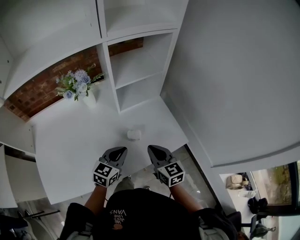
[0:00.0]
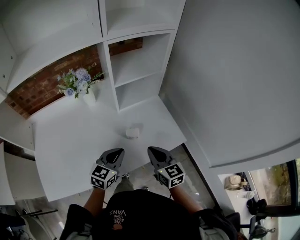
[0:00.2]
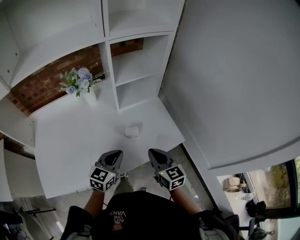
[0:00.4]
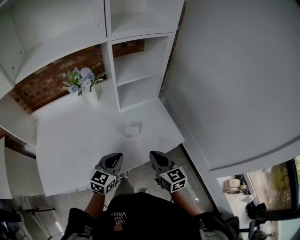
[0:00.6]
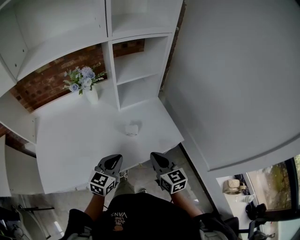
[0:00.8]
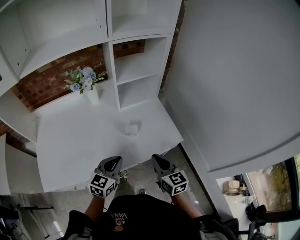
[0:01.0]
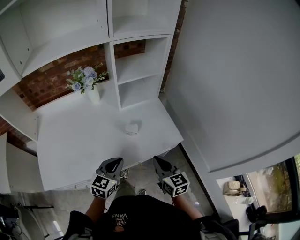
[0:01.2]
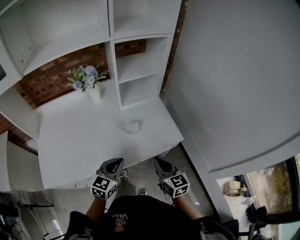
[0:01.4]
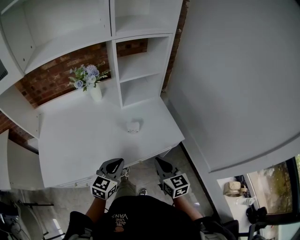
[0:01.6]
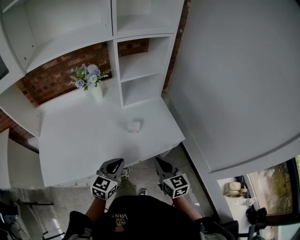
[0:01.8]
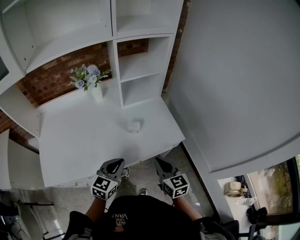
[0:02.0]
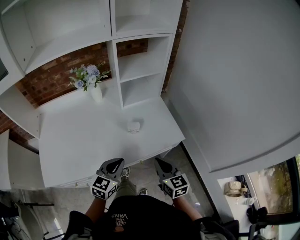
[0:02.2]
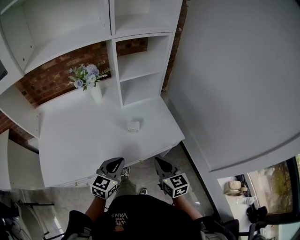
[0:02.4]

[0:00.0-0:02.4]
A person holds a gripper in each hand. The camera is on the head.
0:00.0 to 0:01.2: The left gripper travels backward by roughly 10 cm, while the right gripper goes roughly 10 cm backward and to the right.
0:01.2 to 0:02.4: The grippers make only small movements.

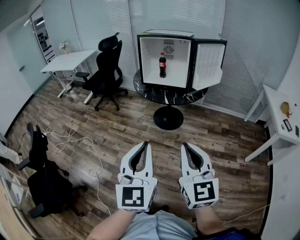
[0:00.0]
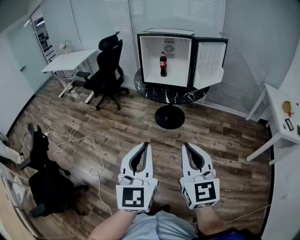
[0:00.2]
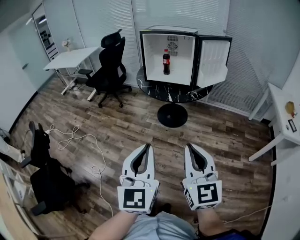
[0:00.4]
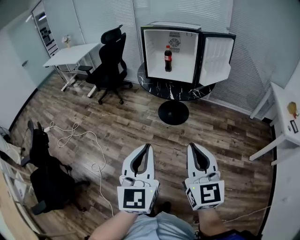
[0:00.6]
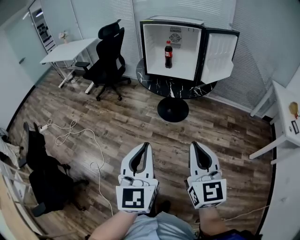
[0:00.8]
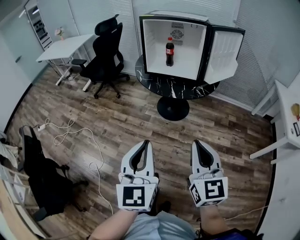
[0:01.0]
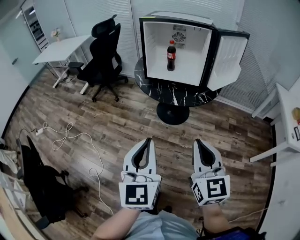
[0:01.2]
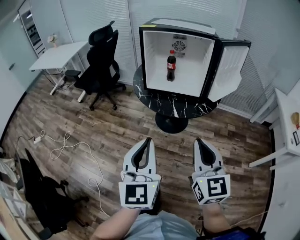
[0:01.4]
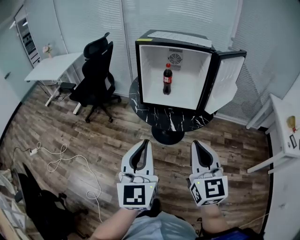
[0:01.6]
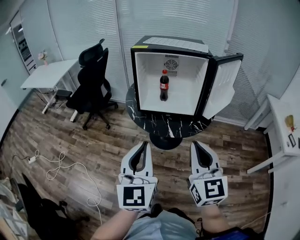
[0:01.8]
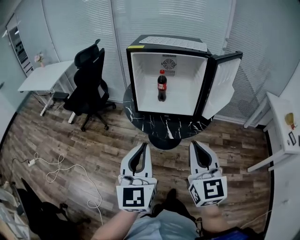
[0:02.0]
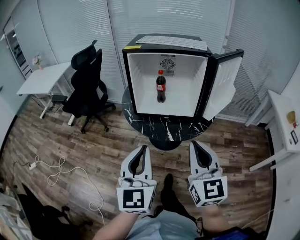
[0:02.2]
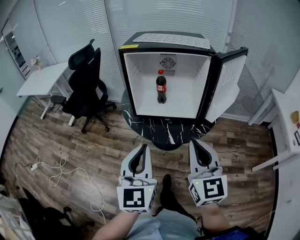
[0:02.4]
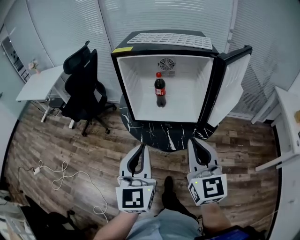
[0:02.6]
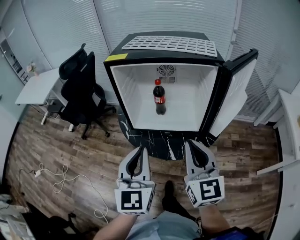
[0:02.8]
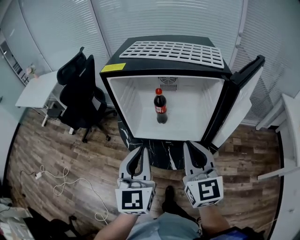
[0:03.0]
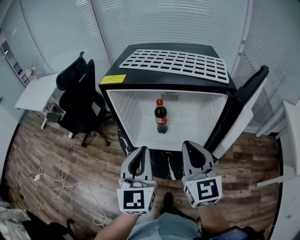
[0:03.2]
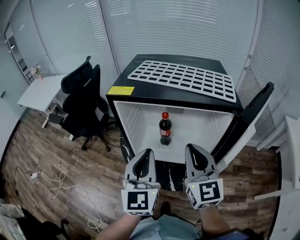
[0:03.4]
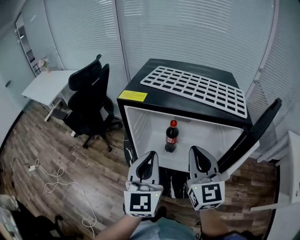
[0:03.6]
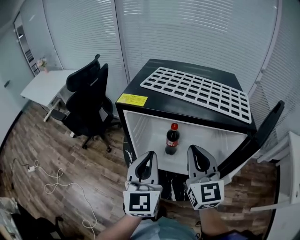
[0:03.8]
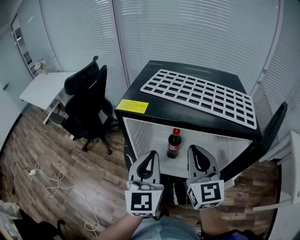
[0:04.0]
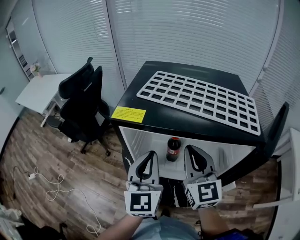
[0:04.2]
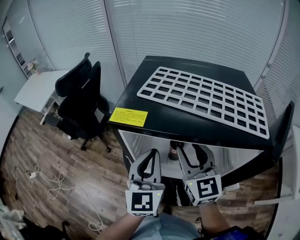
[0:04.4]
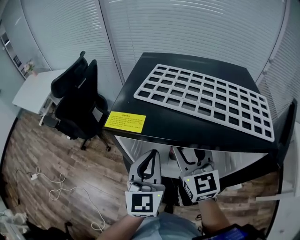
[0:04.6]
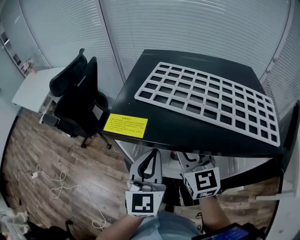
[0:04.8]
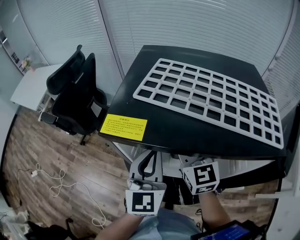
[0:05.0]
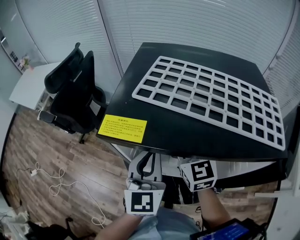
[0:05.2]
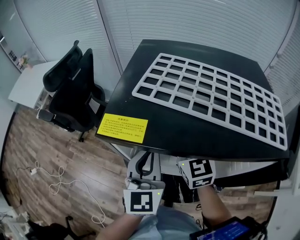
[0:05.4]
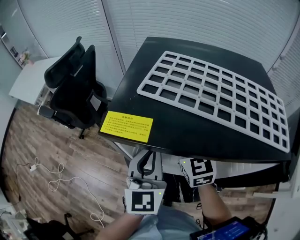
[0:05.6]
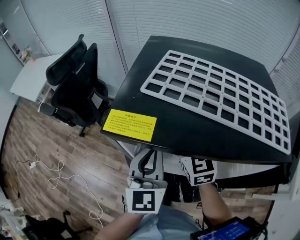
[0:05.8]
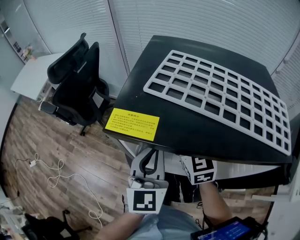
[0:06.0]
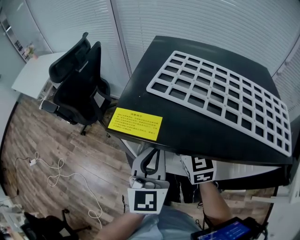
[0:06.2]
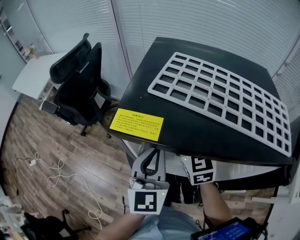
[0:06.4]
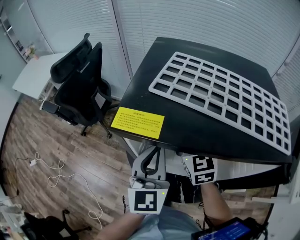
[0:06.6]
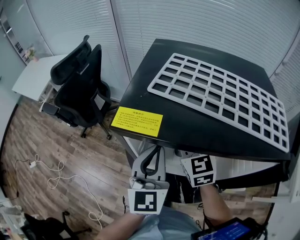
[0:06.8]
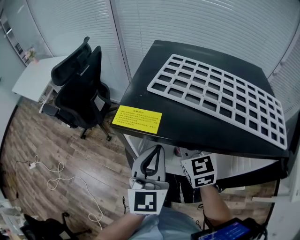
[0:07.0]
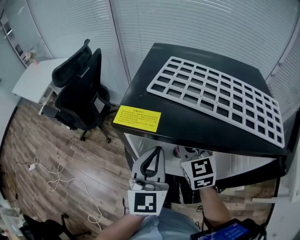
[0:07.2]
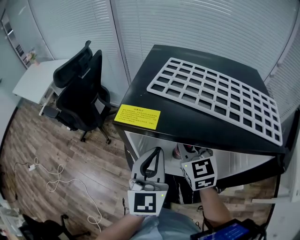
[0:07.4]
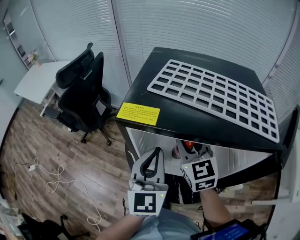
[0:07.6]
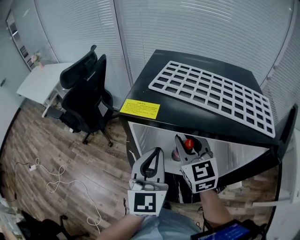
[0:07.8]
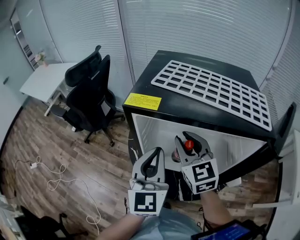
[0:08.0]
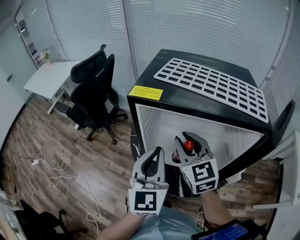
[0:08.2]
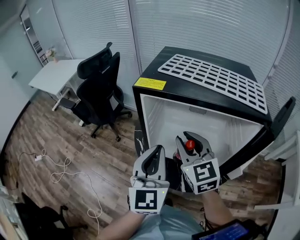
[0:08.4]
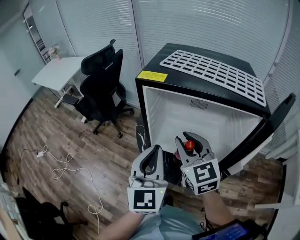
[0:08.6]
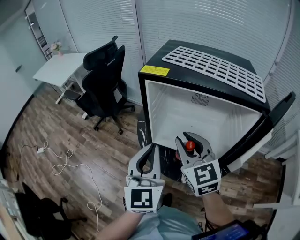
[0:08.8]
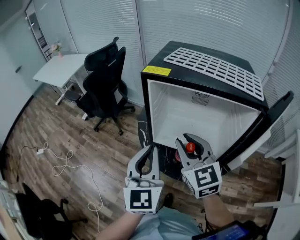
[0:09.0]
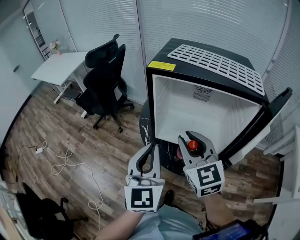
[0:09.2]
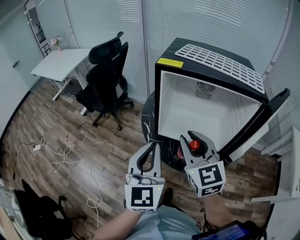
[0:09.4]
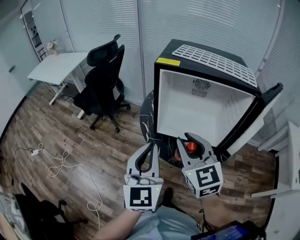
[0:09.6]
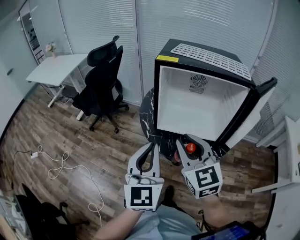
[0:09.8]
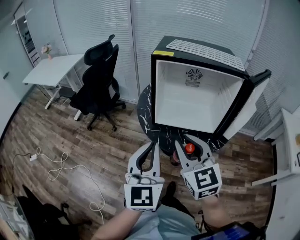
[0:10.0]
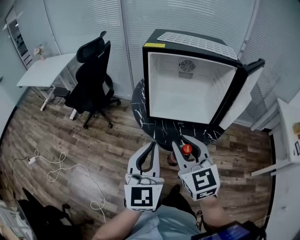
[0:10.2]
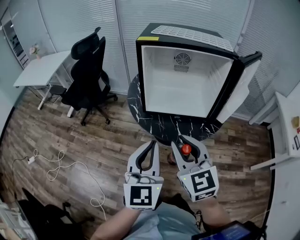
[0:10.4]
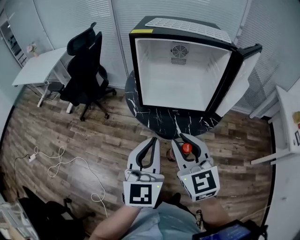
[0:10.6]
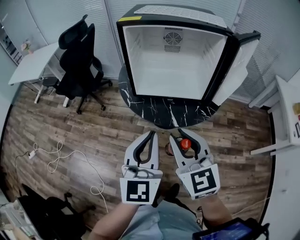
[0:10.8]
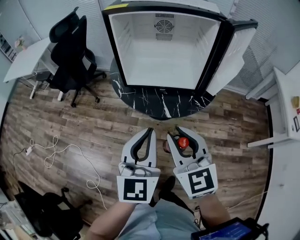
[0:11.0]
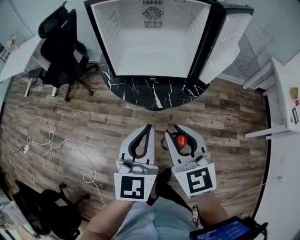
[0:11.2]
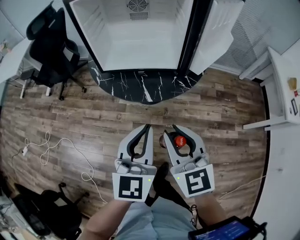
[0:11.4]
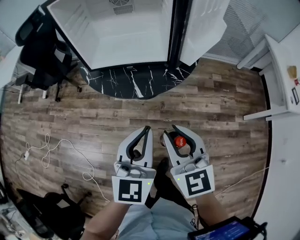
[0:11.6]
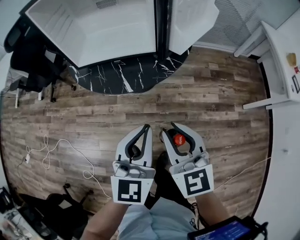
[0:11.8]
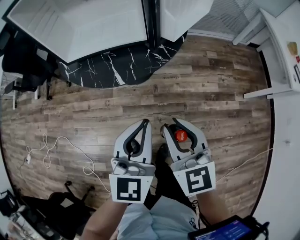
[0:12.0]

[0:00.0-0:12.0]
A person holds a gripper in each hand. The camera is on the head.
0:00.0 to 0:01.6: The two grippers go roughly 35 cm forward.
0:01.6 to 0:03.0: The two grippers go approximately 30 cm forward.
0:03.0 to 0:04.4: The two grippers go approximately 20 cm forward. The right gripper opens.
0:04.4 to 0:06.0: The right gripper is displaced downward and forward by some 10 cm.
0:06.0 to 0:07.6: The right gripper changes place by some 5 cm.
0:07.6 to 0:09.0: The left gripper shifts some 15 cm backward and to the left. The right gripper moves backward, some 20 cm.
0:09.0 to 0:10.4: Both grippers travel together backward, roughly 20 cm.
0:10.4 to 0:12.0: Both grippers move to the right and downward, some 30 cm. The left gripper swivels approximately 20 degrees.

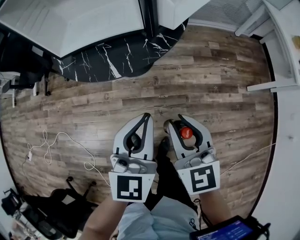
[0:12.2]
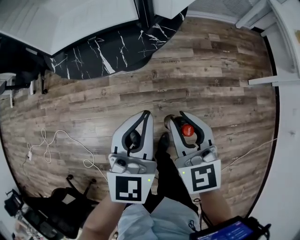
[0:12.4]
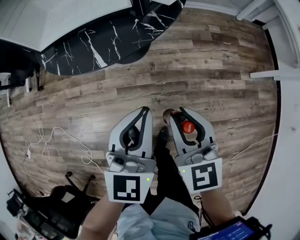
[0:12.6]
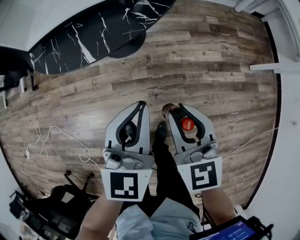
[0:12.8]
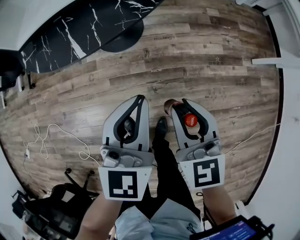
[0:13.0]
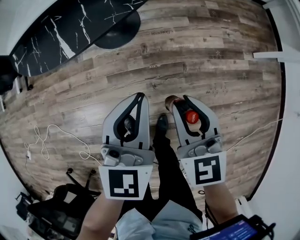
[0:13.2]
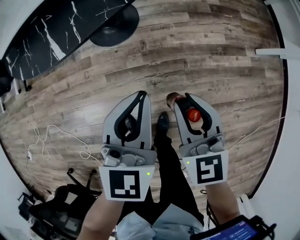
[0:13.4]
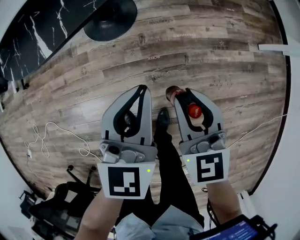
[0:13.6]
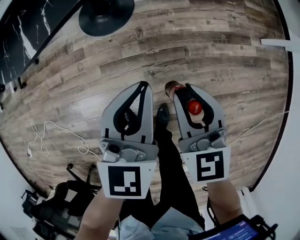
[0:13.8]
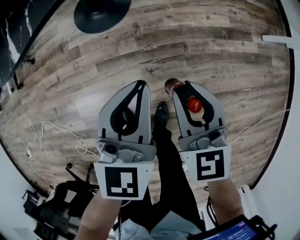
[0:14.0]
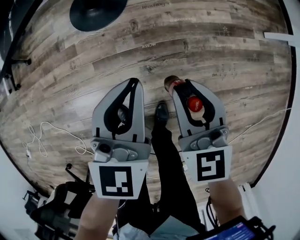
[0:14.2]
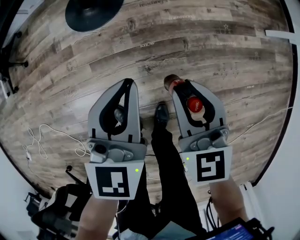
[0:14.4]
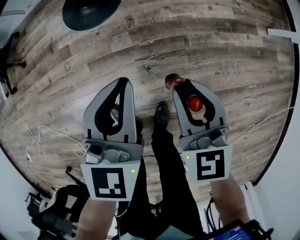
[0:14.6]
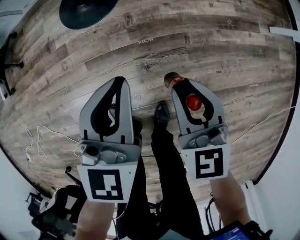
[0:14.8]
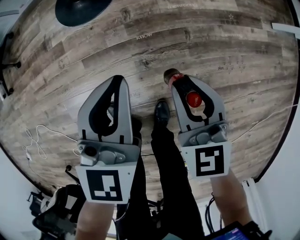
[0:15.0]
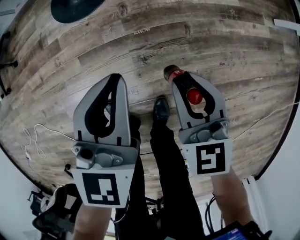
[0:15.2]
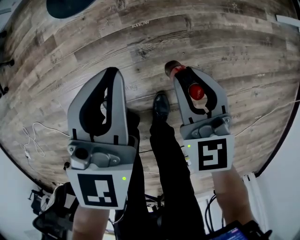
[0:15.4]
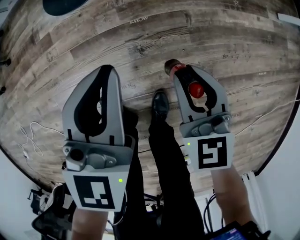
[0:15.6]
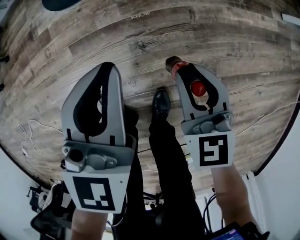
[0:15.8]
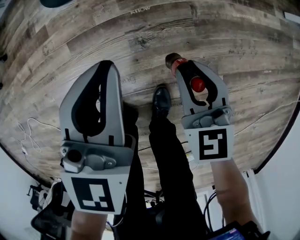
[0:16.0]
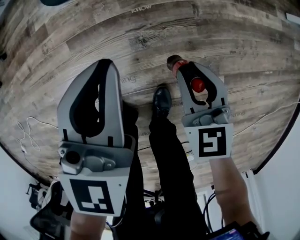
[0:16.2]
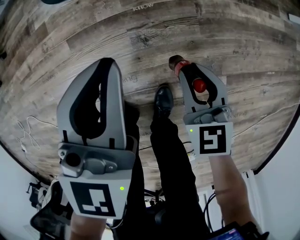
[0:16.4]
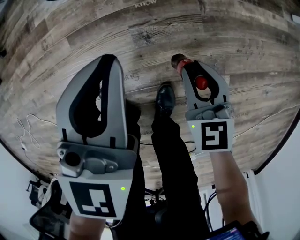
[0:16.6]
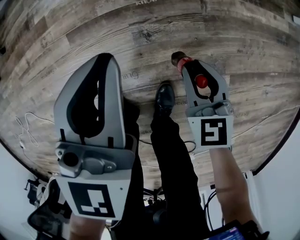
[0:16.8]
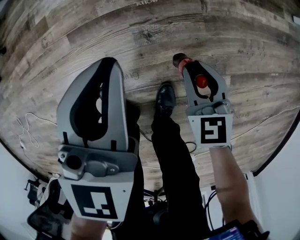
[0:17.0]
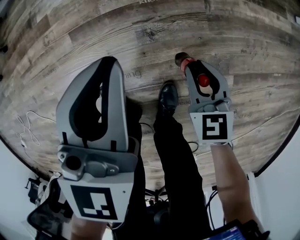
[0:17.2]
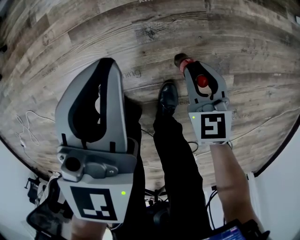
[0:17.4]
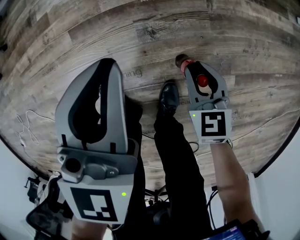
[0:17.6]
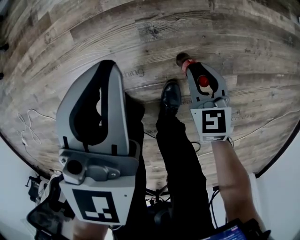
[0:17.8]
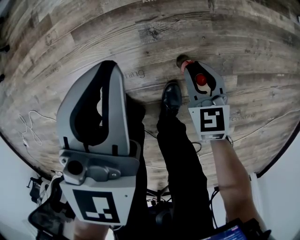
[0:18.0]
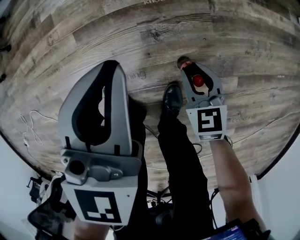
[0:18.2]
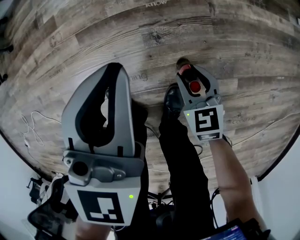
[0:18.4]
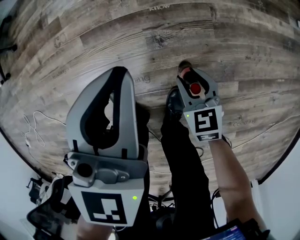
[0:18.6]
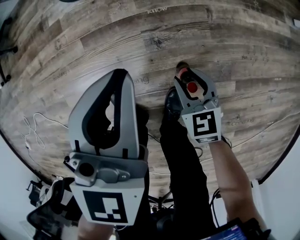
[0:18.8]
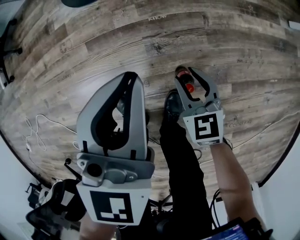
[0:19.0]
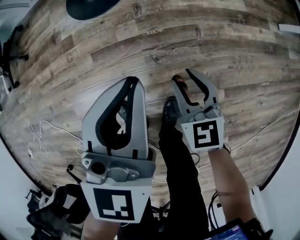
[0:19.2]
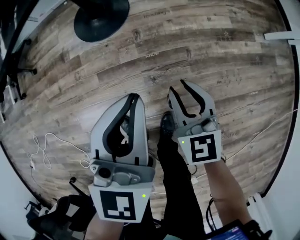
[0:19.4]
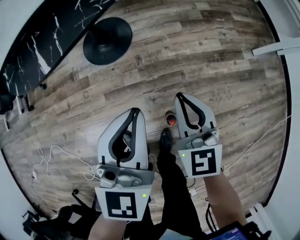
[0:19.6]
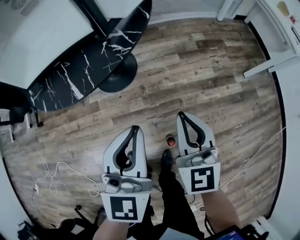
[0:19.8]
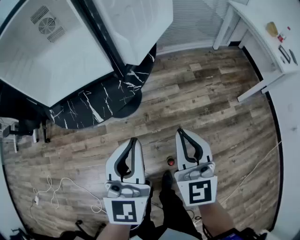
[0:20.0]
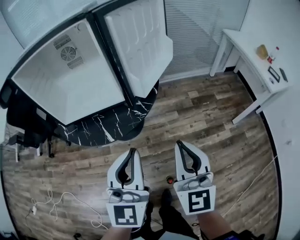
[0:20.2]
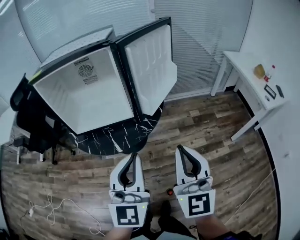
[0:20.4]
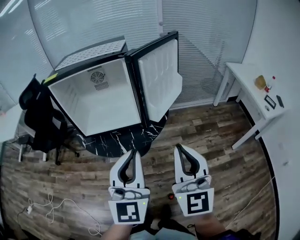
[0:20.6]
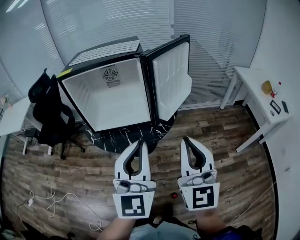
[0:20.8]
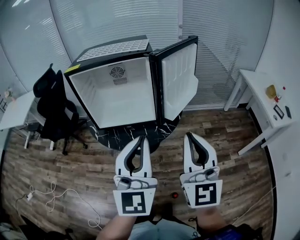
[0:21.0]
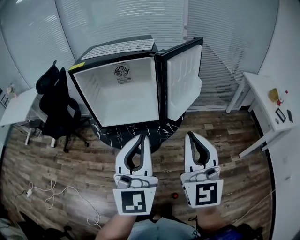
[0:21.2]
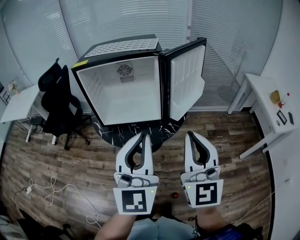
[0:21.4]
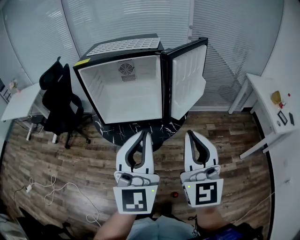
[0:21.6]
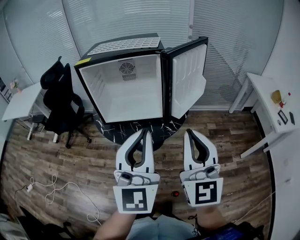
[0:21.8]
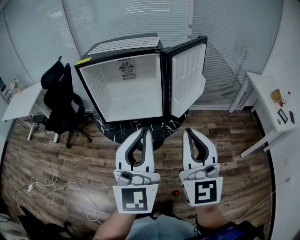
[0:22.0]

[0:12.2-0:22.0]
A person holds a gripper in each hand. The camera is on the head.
0:12.2 to 0:13.6: The two grippers go roughly 20 cm downward.
0:13.6 to 0:15.0: The grippers both shift downward by roughly 20 cm.
0:15.0 to 0:16.4: The right gripper travels downward by roughly 15 cm. The left gripper heads downward, covering about 10 cm.
0:16.4 to 0:17.8: The right gripper goes some 10 cm downward.
0:17.8 to 0:19.2: The two grippers go some 15 cm upward.
0:19.2 to 0:20.6: The grippers both shift upward by some 70 cm. The right gripper points its fingers about 50 degrees further upward, and closes up. Meanwhile the left gripper tilts its fingers some 30 degrees upward.
0:20.6 to 0:22.0: The left gripper is displaced upward by roughly 5 cm. Meanwhile the right gripper travels upward and to the left by some 10 cm.
